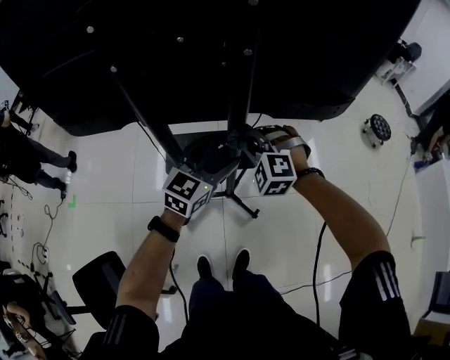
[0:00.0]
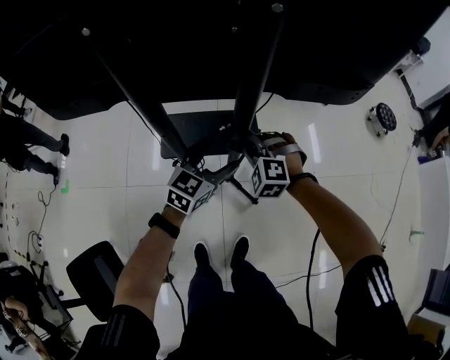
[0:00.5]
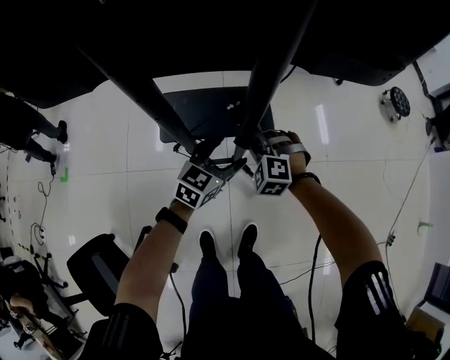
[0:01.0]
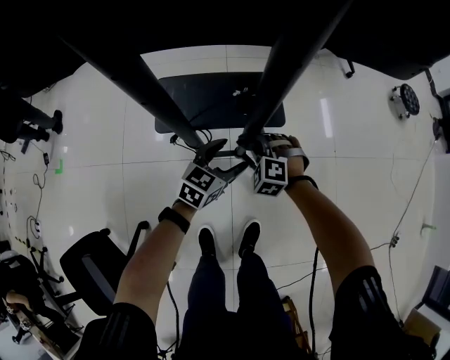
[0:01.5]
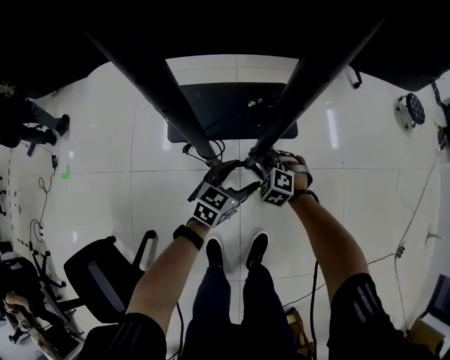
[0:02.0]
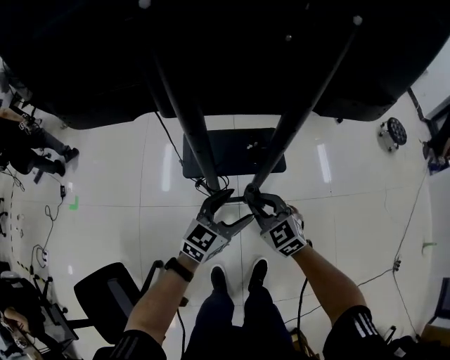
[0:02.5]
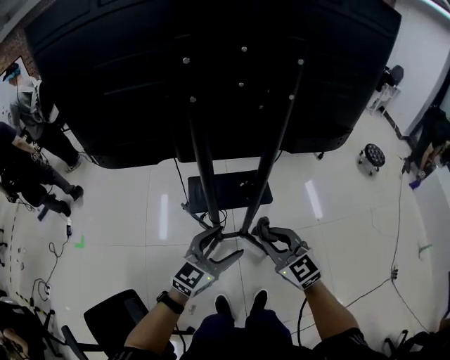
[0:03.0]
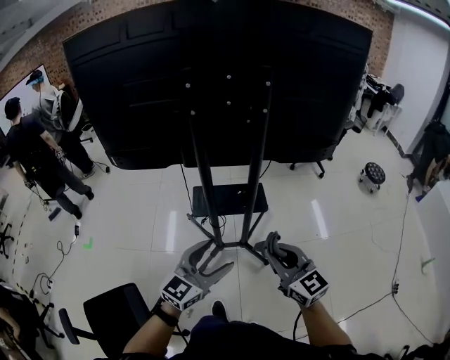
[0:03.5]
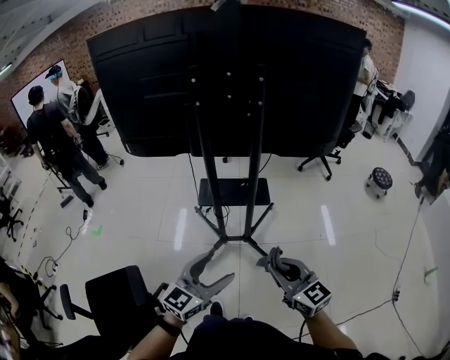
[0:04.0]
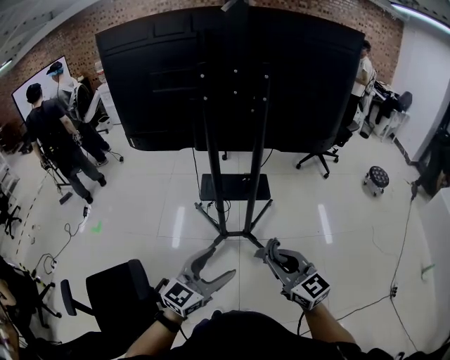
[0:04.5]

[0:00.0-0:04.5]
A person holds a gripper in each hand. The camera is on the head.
0:00.0 to 0:02.0: Both grippers travel together downward, some 40 cm. The left gripper swivels approximately 20 degrees; the right gripper changes its angle by about 30 degrees.
0:02.0 to 0:04.5: Both grippers are carried backward, approximately 40 cm. Both grippers travel together upward, about 50 cm. The right gripper points its fingers roughly 50 degrees further upward; the left gripper changes its angle by roughly 30 degrees.

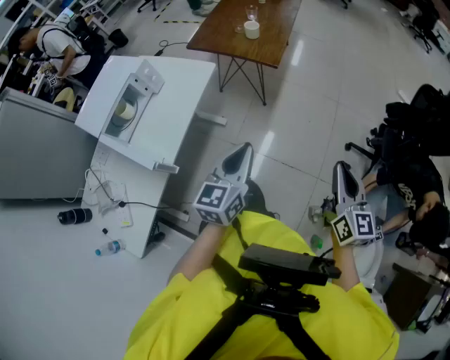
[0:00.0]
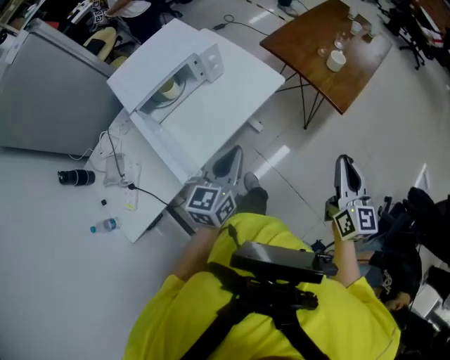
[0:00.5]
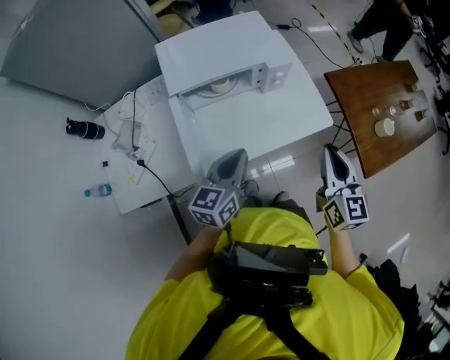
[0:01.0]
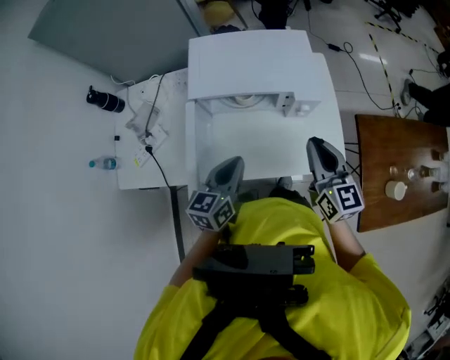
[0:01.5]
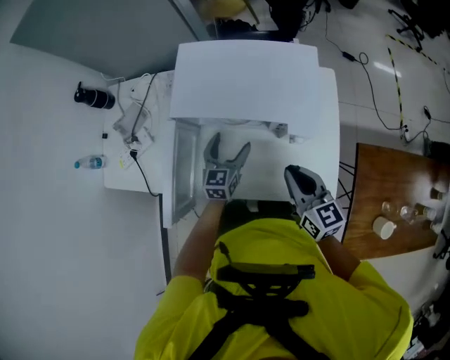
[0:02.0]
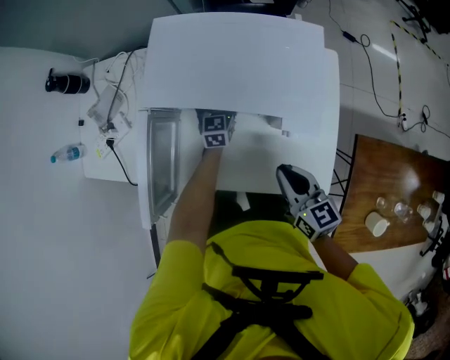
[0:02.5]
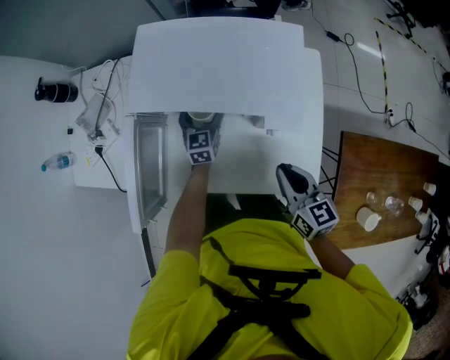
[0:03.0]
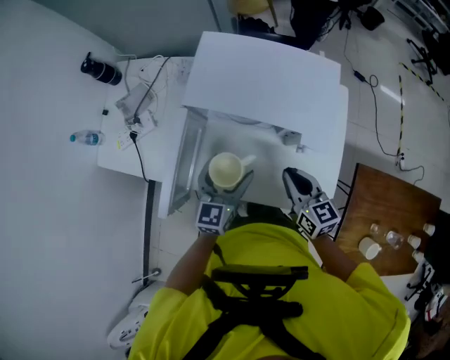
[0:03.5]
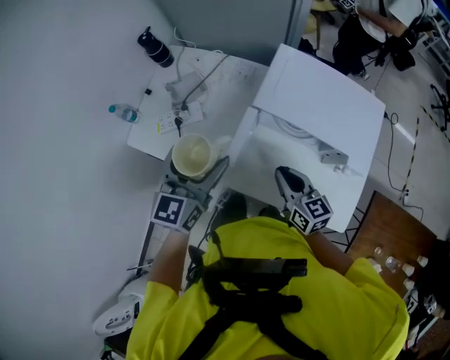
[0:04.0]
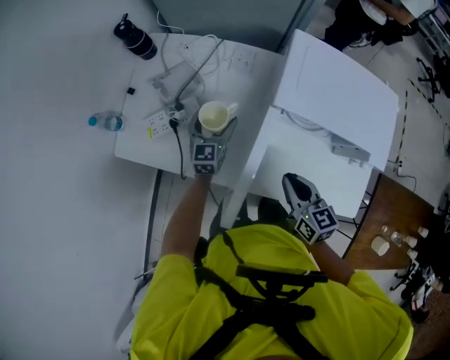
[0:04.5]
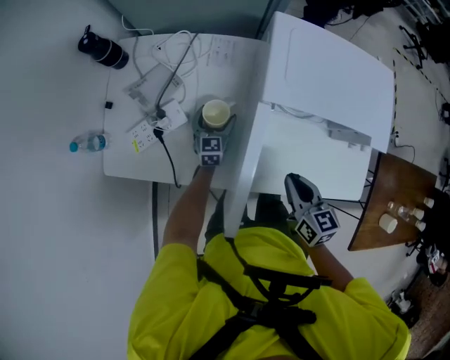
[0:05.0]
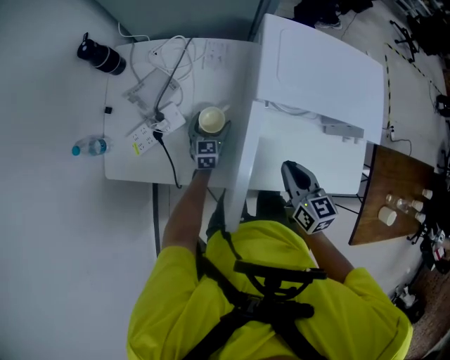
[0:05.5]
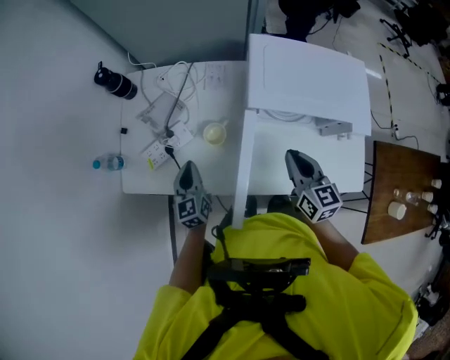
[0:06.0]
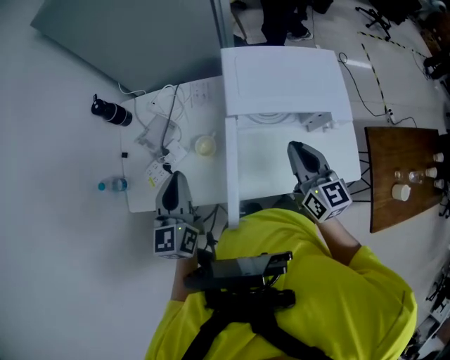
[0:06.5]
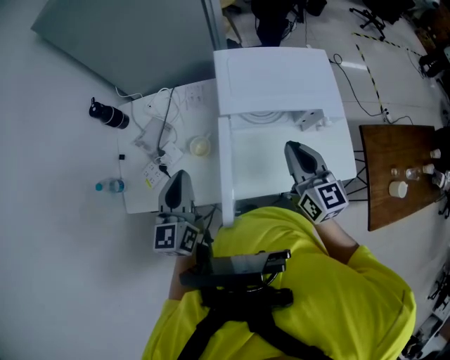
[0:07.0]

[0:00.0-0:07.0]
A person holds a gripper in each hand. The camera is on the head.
0:00.0 to 0:02.0: The pair of grippers is taken some 70 cm. The left gripper swivels roughly 70 degrees, and opens; the right gripper swivels approximately 90 degrees.
0:02.0 to 0:03.5: The left gripper shifts about 10 cm upward, and goes forward and returns, approximately 15 cm each way.
0:03.5 to 0:05.0: The left gripper moves to the left, downward and forward, roughly 40 cm. The right gripper goes about 25 cm to the left.
0:05.0 to 0:07.0: The left gripper moves upward and backward, some 40 cm, and closes its fingers, while the right gripper goes some 20 cm upward, and turns by about 30 degrees.

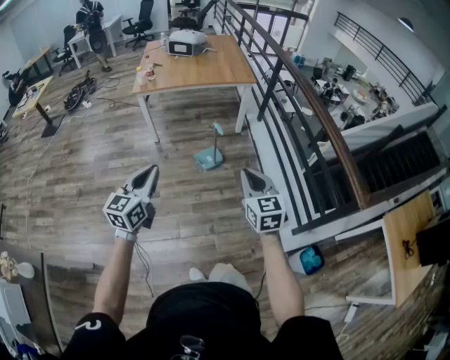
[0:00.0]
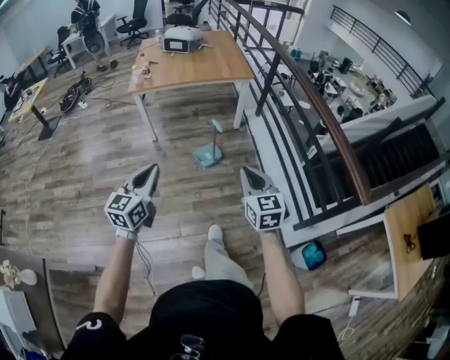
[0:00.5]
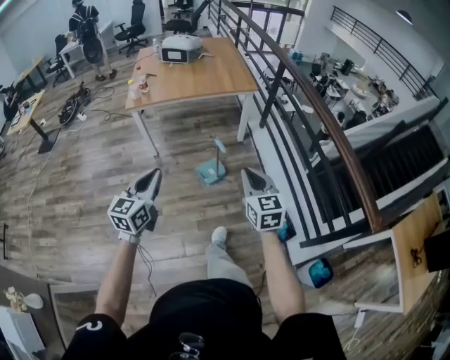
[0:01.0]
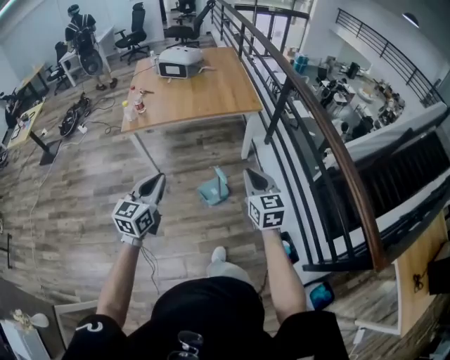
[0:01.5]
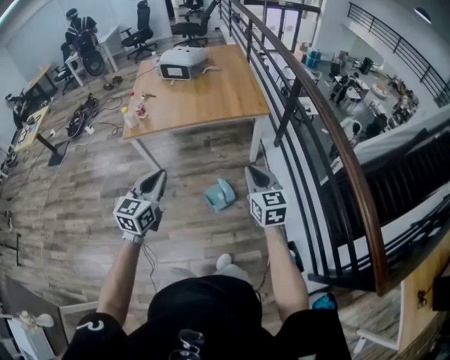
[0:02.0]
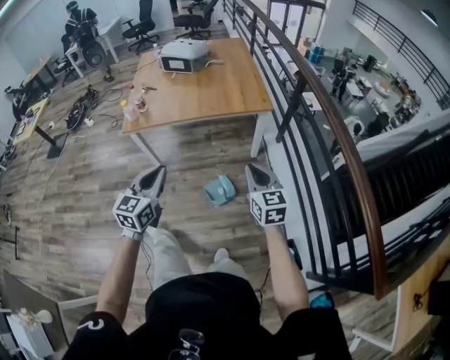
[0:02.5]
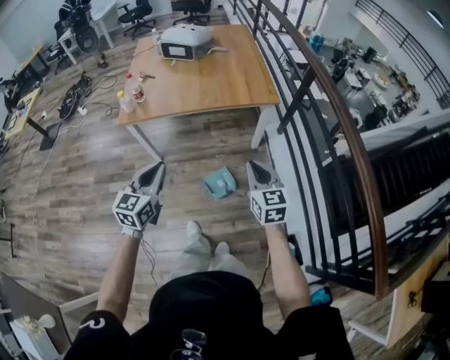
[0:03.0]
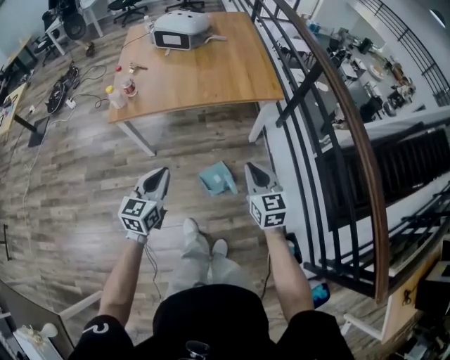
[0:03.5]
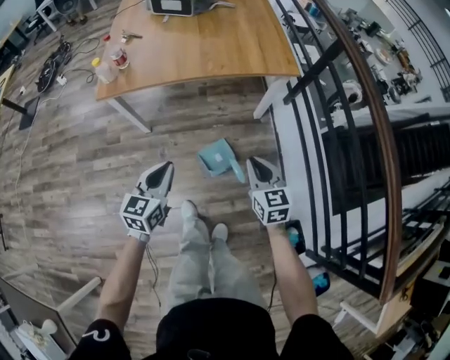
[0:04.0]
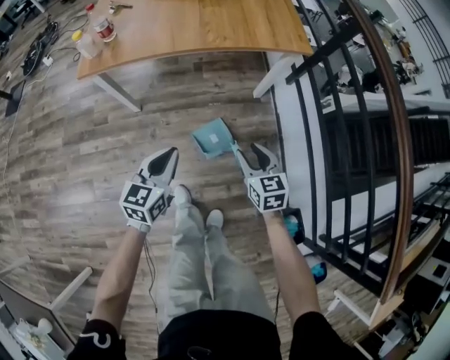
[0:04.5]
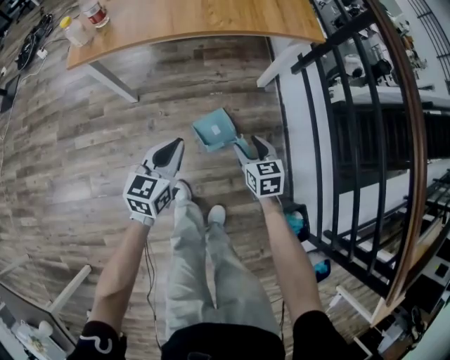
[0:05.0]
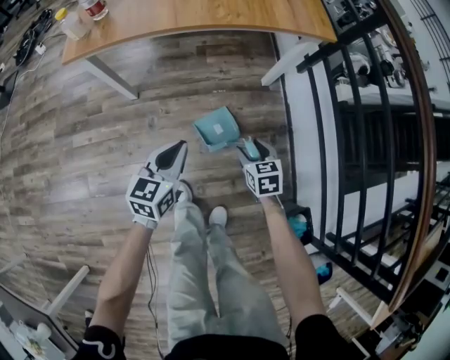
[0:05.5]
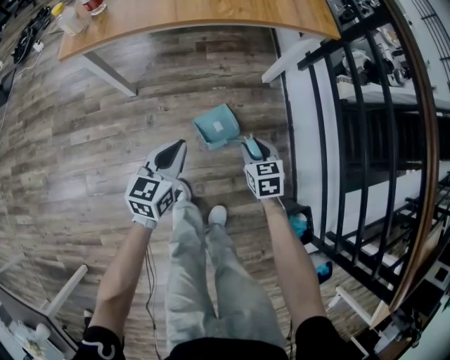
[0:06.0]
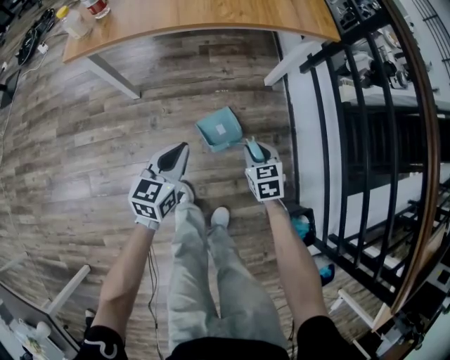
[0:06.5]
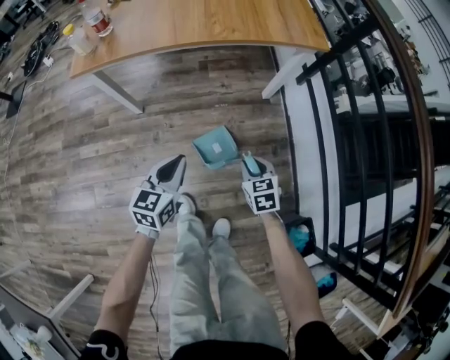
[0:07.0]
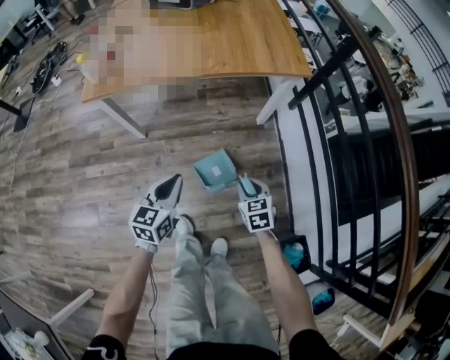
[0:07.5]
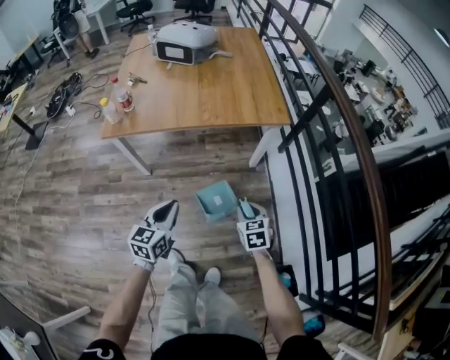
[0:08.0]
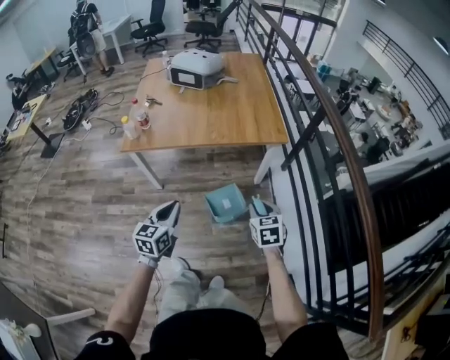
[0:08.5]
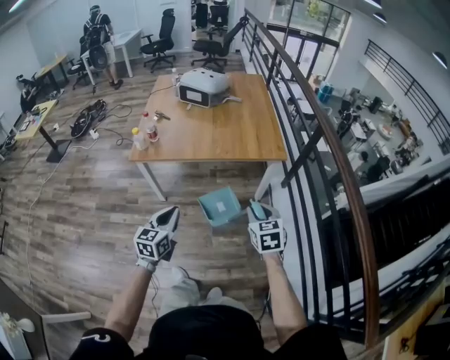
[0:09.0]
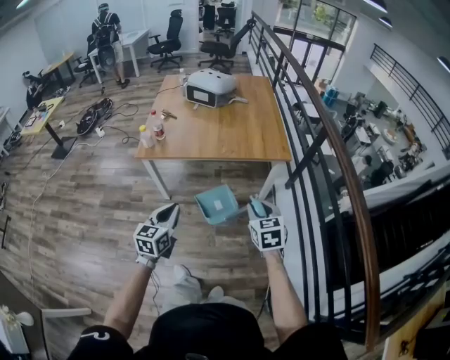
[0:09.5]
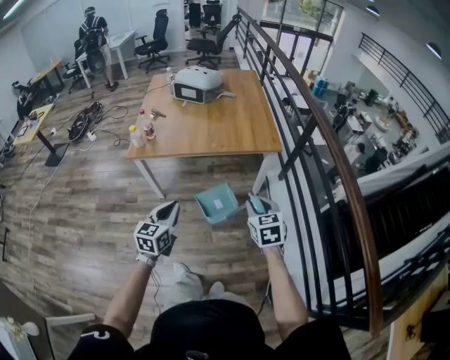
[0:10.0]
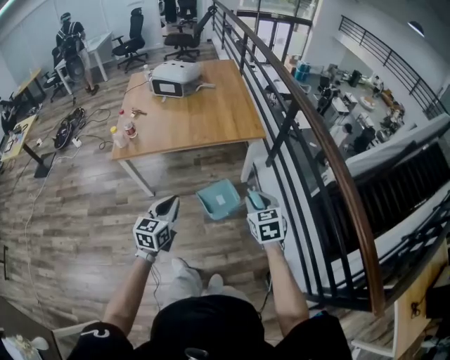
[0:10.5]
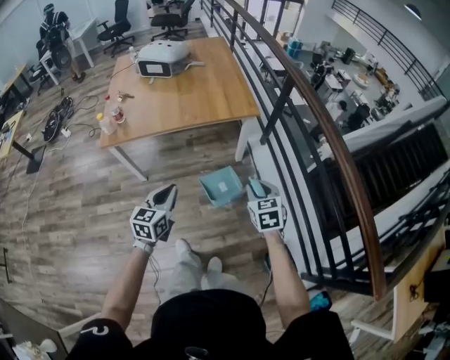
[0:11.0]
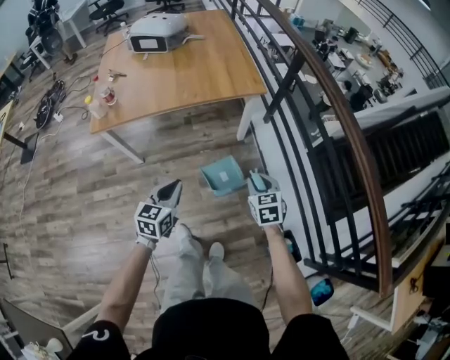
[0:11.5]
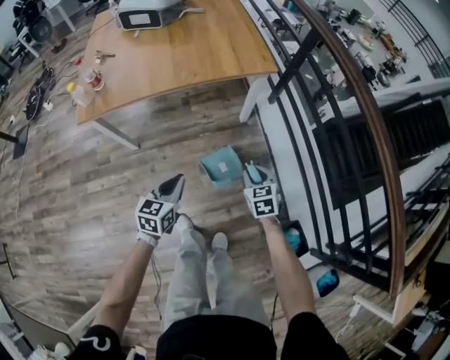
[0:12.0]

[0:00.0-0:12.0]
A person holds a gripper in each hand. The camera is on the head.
0:00.0 to 0:02.0: The two grippers travel together, forward, roughly 50 cm.
0:02.0 to 0:04.0: The left gripper shifts approximately 30 cm downward and forward, while the right gripper heads downward, forward and to the left, covering approximately 30 cm.
0:04.0 to 0:06.0: Both grippers travel together downward, roughly 25 cm. The right gripper changes its angle by roughly 20 degrees, and opens its fingers.
0:06.0 to 0:08.0: Both grippers travel together upward, approximately 20 cm.
0:08.0 to 0:10.0: The right gripper is displaced upward by about 25 cm; the left gripper goes roughly 15 cm upward and backward.
0:10.0 to 0:12.0: The left gripper travels downward and forward by some 25 cm. Meanwhile the right gripper travels downward by about 30 cm.

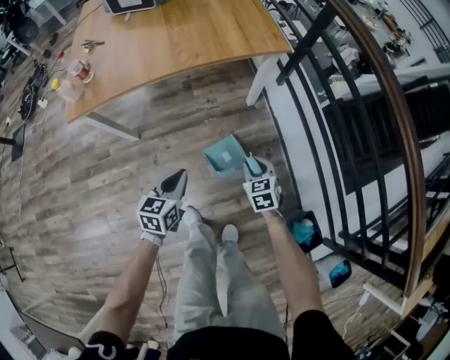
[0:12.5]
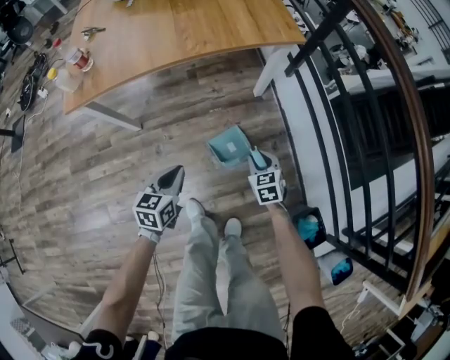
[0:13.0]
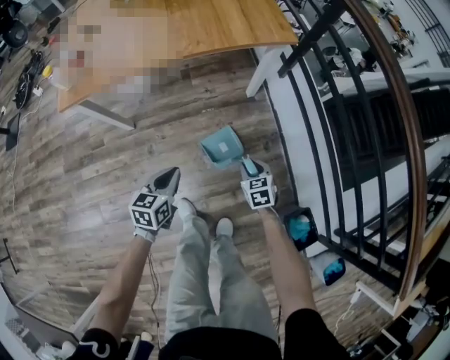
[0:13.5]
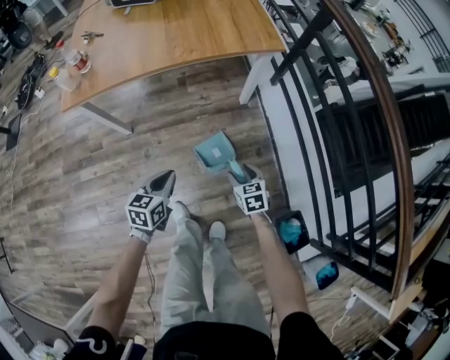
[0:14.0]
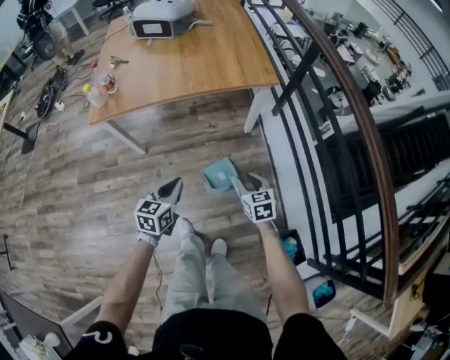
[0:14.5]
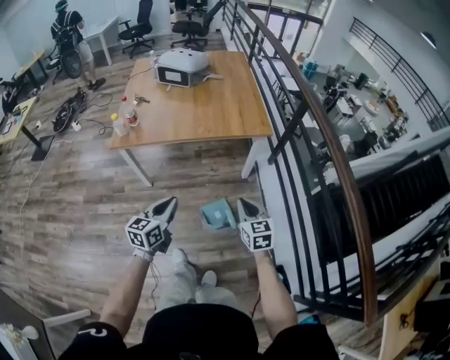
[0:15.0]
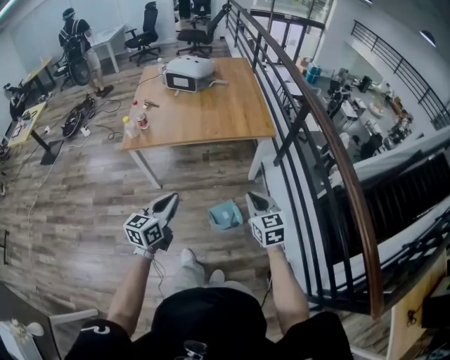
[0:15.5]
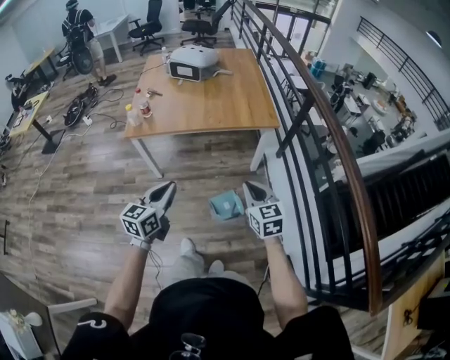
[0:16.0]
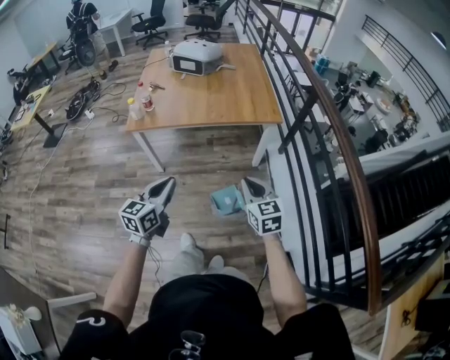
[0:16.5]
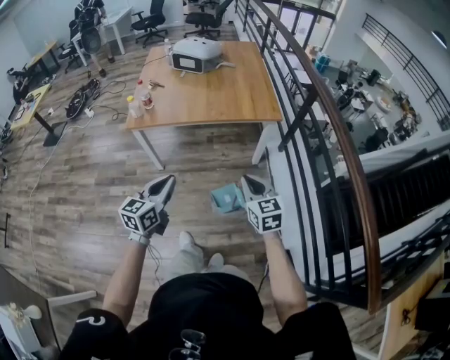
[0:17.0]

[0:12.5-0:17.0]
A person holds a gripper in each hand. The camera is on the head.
0:12.5 to 0:14.5: Both grippers move upward, approximately 10 cm. The right gripper opens and closes again.
0:14.5 to 0:17.0: The right gripper is displaced upward by about 25 cm, swivels about 20 degrees, and closes up. The left gripper goes some 25 cm upward and backward.
